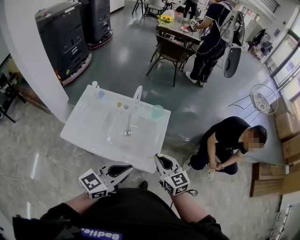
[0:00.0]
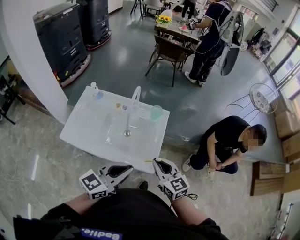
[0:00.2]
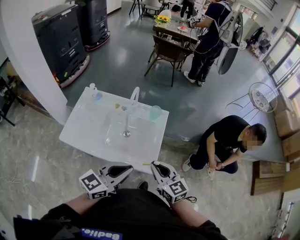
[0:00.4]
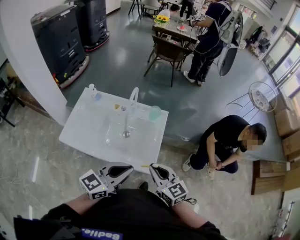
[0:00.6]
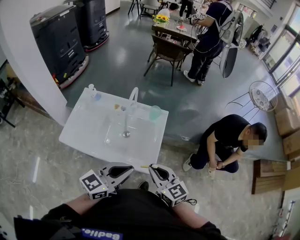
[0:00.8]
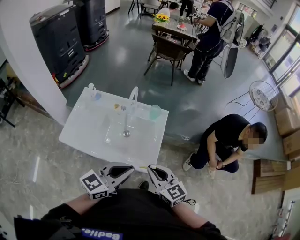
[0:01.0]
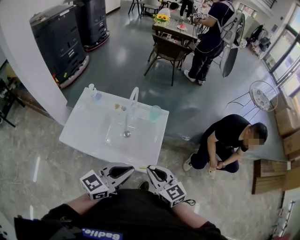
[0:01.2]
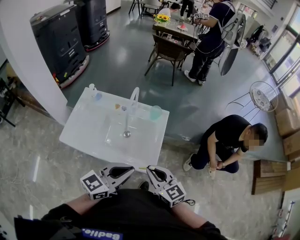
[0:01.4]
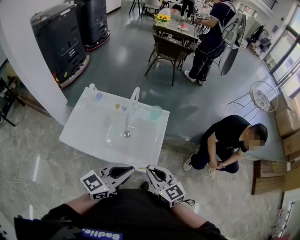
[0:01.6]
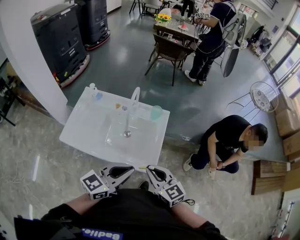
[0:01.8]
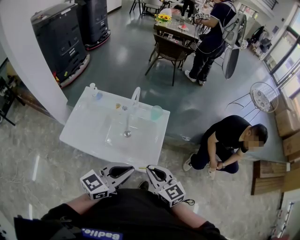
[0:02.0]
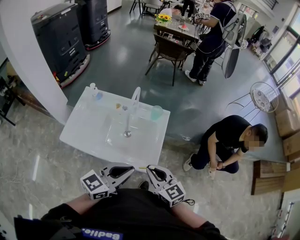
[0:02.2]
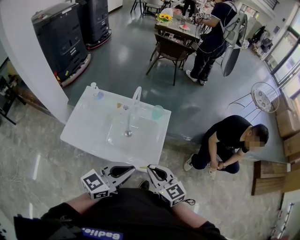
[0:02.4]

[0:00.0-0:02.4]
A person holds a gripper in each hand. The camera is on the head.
0:00.0 to 0:01.2: The right gripper shifts by roughly 5 cm.
0:01.2 to 0:02.4: Neither gripper changes place.

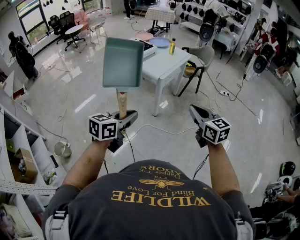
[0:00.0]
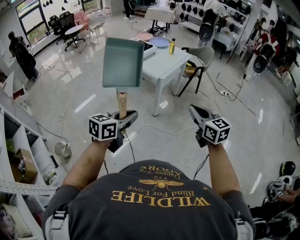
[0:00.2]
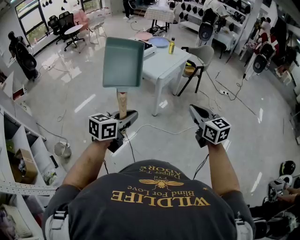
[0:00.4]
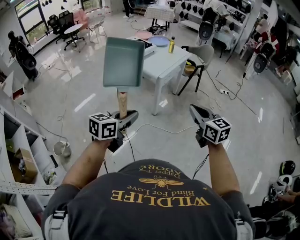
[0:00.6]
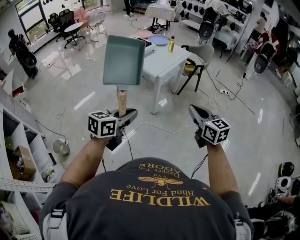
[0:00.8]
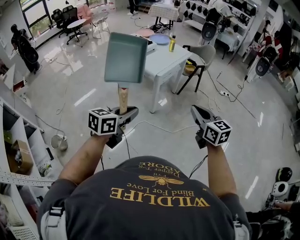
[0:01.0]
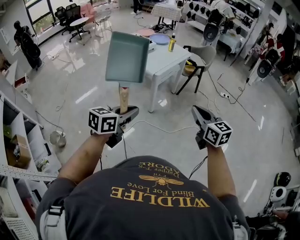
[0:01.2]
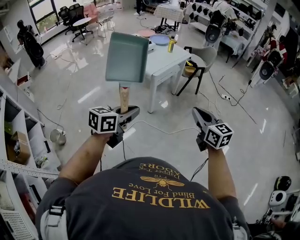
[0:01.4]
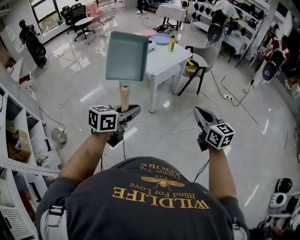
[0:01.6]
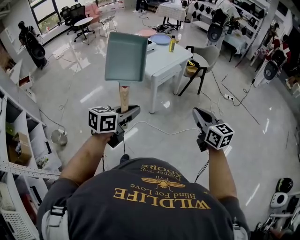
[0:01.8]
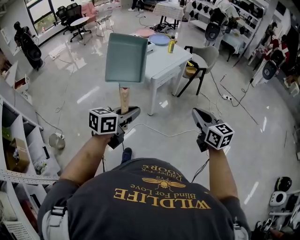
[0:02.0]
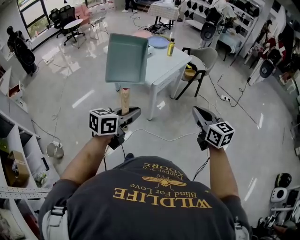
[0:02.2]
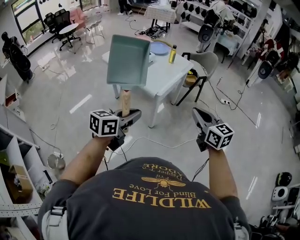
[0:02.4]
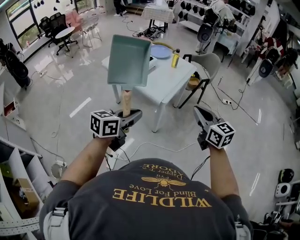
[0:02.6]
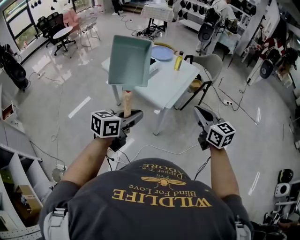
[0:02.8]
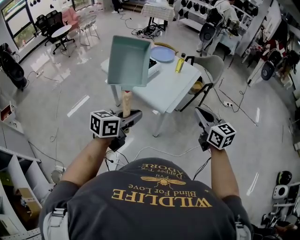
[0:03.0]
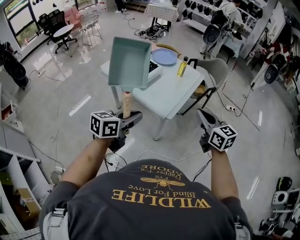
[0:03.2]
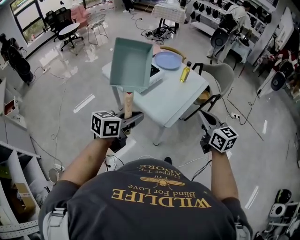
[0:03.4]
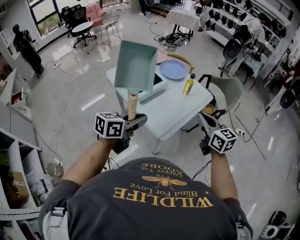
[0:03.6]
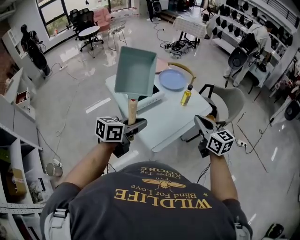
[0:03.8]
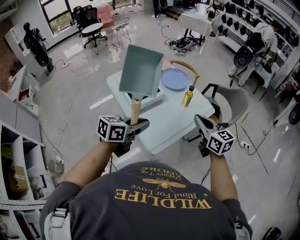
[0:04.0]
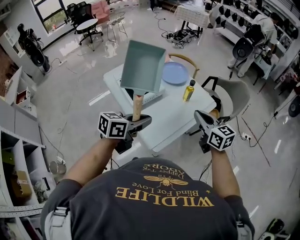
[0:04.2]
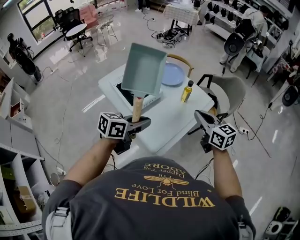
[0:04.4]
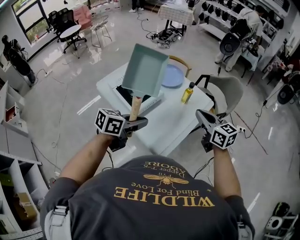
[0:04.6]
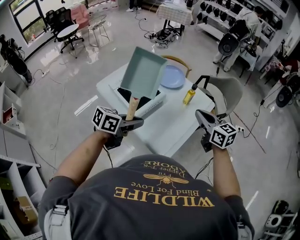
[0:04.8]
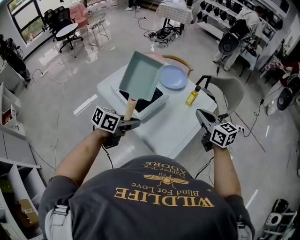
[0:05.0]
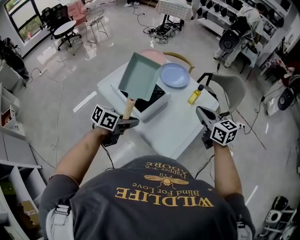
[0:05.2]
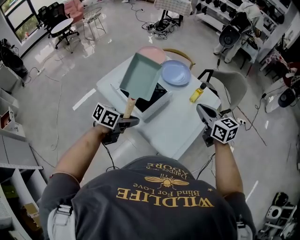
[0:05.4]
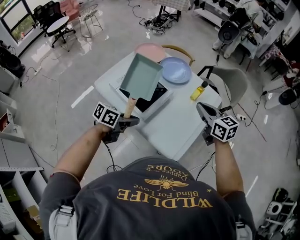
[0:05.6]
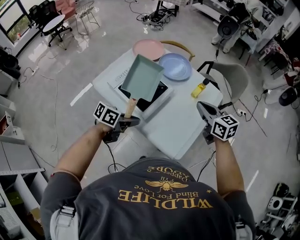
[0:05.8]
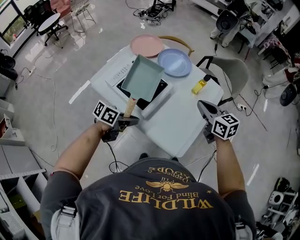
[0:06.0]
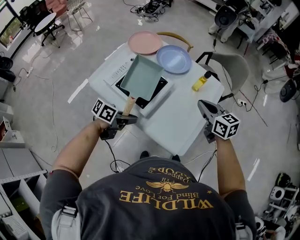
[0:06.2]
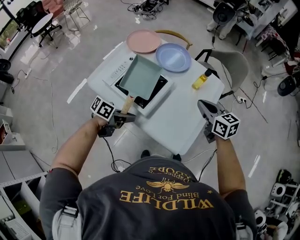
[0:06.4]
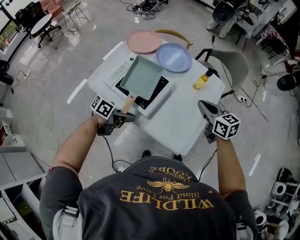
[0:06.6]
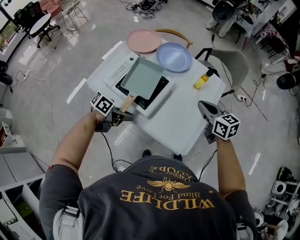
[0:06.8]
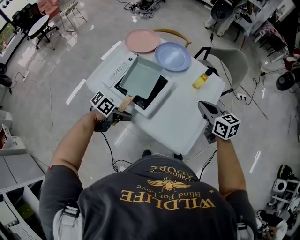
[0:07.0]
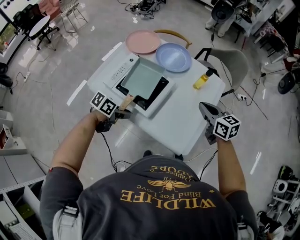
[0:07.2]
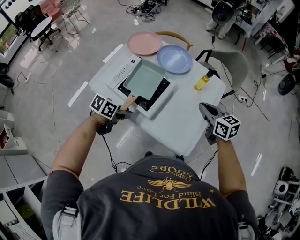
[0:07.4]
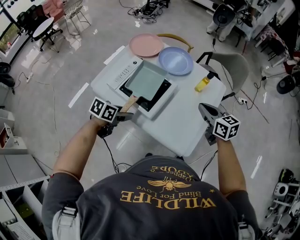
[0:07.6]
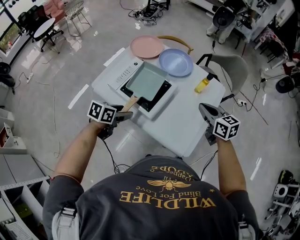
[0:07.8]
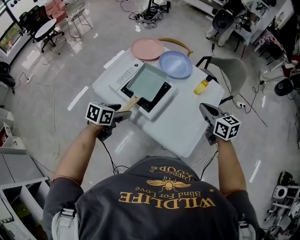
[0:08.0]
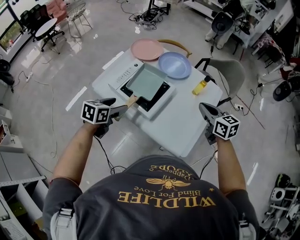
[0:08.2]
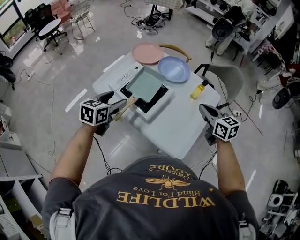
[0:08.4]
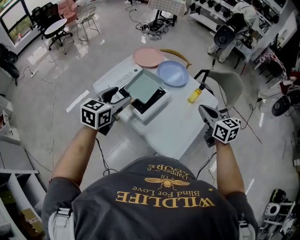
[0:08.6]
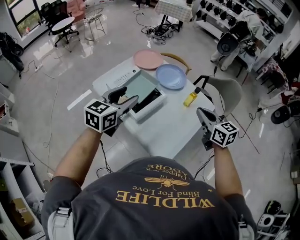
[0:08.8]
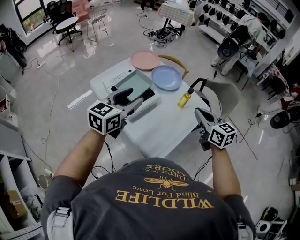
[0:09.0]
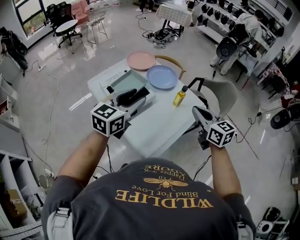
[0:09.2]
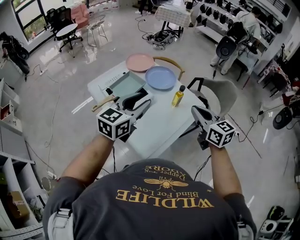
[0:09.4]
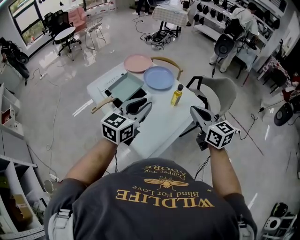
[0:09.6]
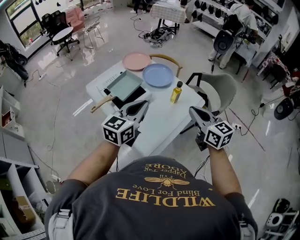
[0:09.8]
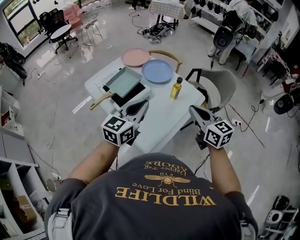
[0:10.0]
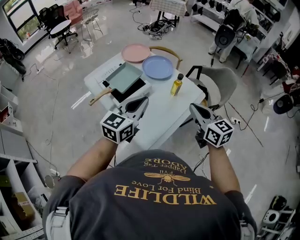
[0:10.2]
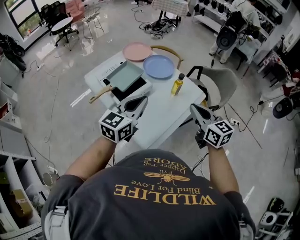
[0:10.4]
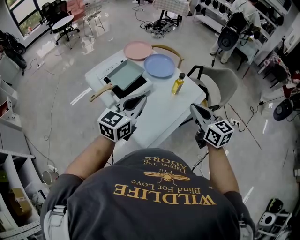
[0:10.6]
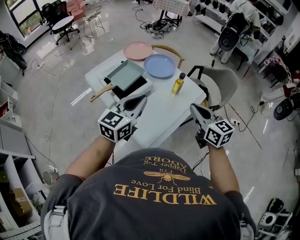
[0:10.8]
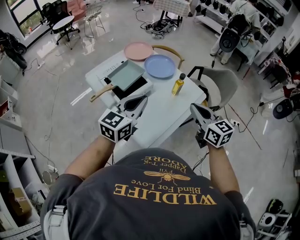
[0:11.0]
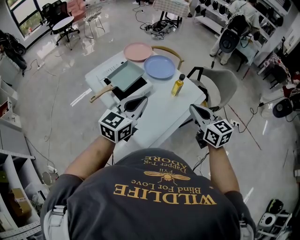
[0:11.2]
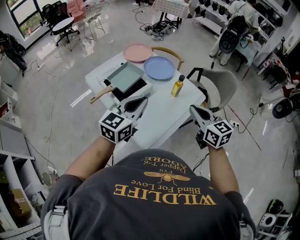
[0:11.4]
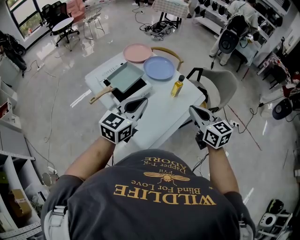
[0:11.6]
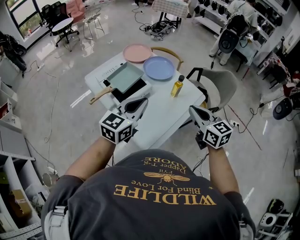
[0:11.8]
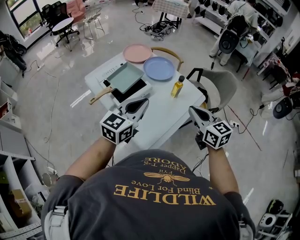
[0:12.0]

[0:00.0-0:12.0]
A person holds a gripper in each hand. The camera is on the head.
0:00.0 to 0:01.6: The grippers both shift to the right by some 15 cm.
0:01.6 to 0:03.0: Both grippers are carried forward and to the left, some 40 cm.
0:03.0 to 0:04.4: Both grippers move forward, some 30 cm.
0:04.4 to 0:06.0: The right gripper moves to the left and forward, approximately 15 cm. Meanwhile the left gripper is displaced to the left and downward by about 25 cm, and changes its angle by about 30 degrees.
0:06.0 to 0:07.6: The left gripper moves about 10 cm, and opens its fingers.
0:07.6 to 0:09.0: The right gripper shifts approximately 10 cm upward; the left gripper shifts about 25 cm upward, and points its fingers roughly 30 degrees further upward.
0:09.0 to 0:10.4: The right gripper is displaced backward by about 5 cm; the left gripper heads to the right and backward, covering some 10 cm, and closes.
0:10.4 to 0:12.0: Neither gripper changes place.

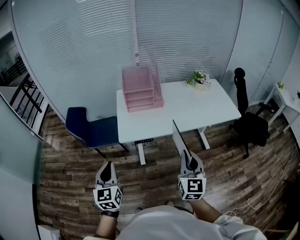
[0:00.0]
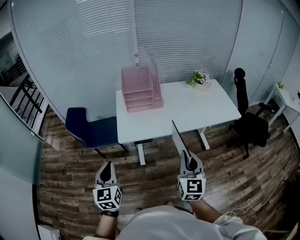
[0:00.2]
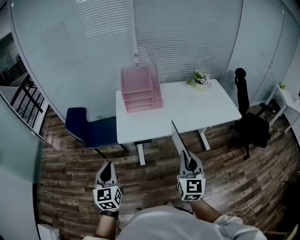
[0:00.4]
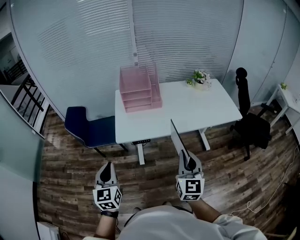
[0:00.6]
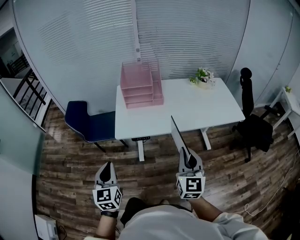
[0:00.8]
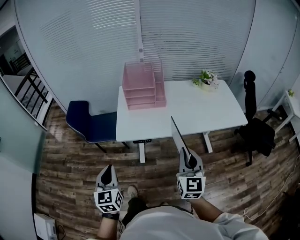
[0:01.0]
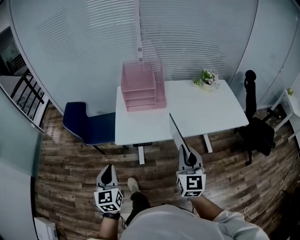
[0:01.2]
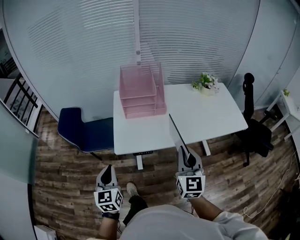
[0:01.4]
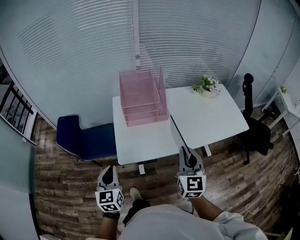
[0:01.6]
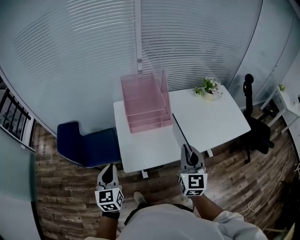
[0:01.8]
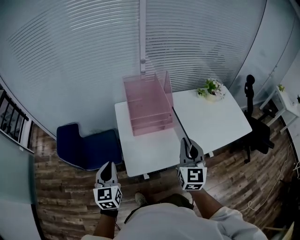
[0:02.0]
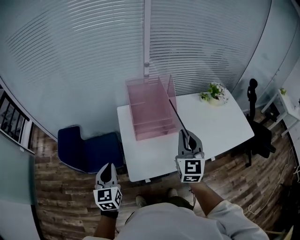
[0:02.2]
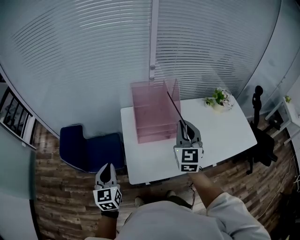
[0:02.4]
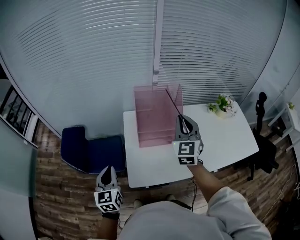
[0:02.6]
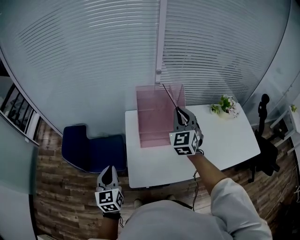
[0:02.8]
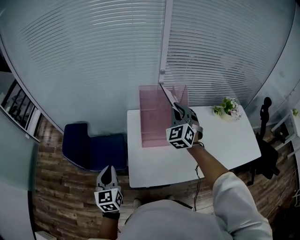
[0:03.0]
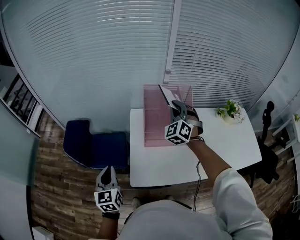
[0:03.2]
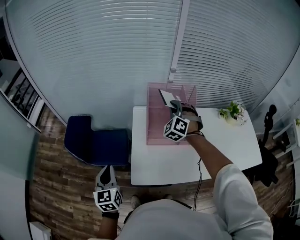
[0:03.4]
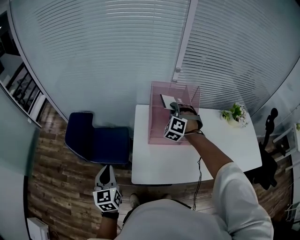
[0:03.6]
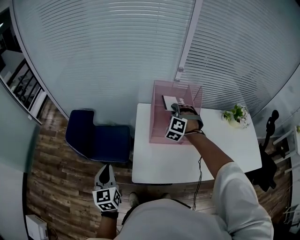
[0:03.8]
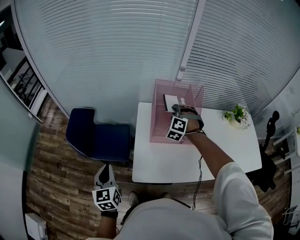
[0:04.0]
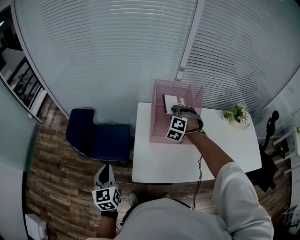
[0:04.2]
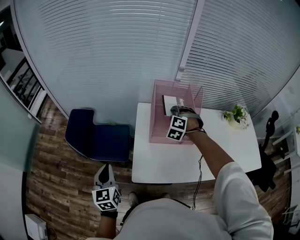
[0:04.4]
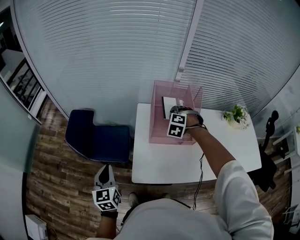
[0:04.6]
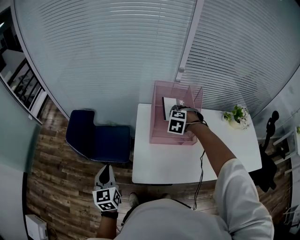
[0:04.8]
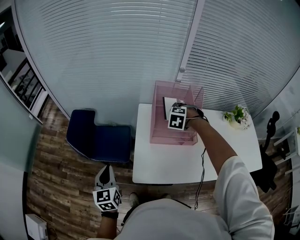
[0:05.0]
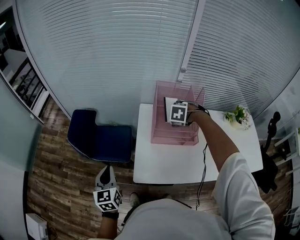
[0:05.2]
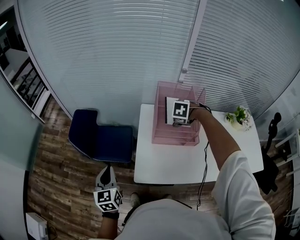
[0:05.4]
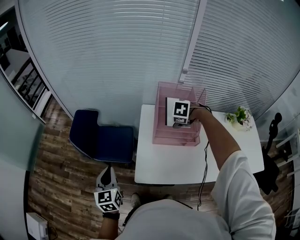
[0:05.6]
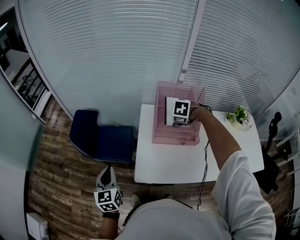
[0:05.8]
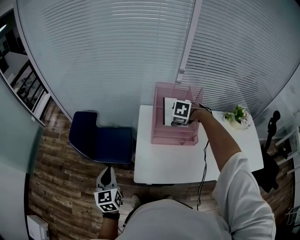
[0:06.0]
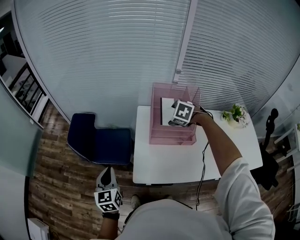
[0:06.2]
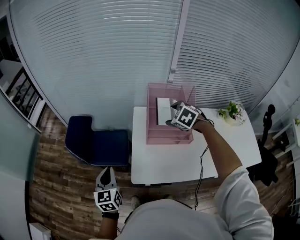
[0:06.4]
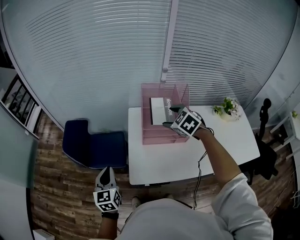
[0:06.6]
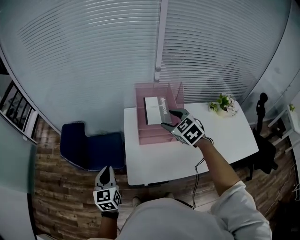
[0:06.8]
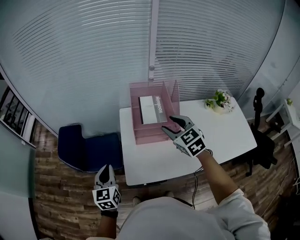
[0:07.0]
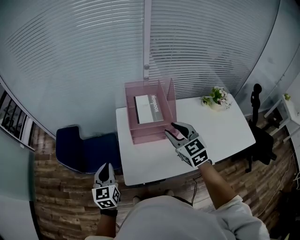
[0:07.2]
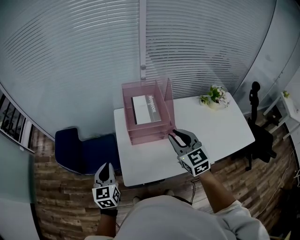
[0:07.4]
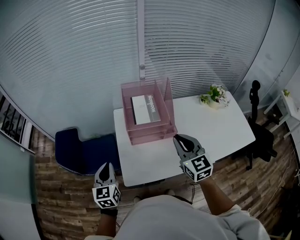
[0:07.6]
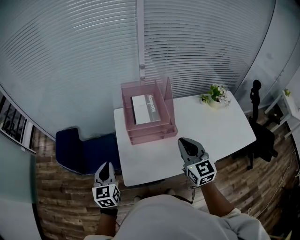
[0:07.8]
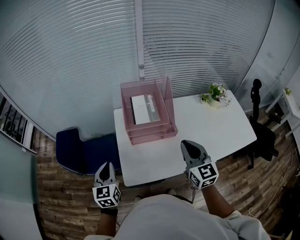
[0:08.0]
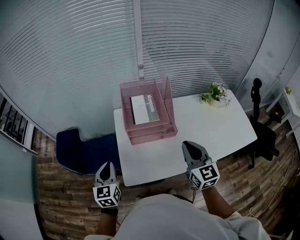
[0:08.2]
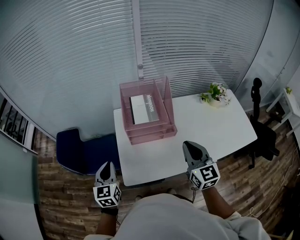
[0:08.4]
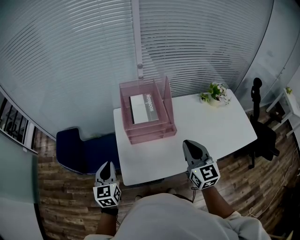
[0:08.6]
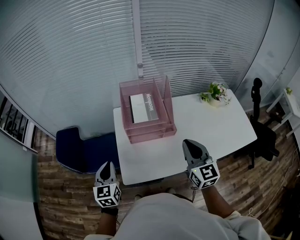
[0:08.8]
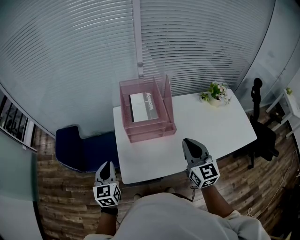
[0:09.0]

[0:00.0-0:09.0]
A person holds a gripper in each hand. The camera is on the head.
0:00.0 to 0:01.6: The two grippers go about 20 cm forward.
0:01.6 to 0:03.0: The right gripper moves forward, about 35 cm, and rotates around the line of its fingers by some 40 degrees, counterclockwise from behind. The left gripper moves forward and to the left, about 20 cm.
0:03.0 to 0:04.4: The left gripper travels to the left by roughly 5 cm. Meanwhile the right gripper travels downward and to the left by some 15 cm, and angles its fingers downward, by roughly 30 degrees.
0:04.4 to 0:06.0: The right gripper points its fingers approximately 30 degrees further downward, and opens its fingers.
0:06.0 to 0:07.6: The left gripper changes place by roughly 10 cm. Meanwhile the right gripper shifts by some 25 cm, points its fingers some 60 degrees further upward, and closes up.
0:07.6 to 0:09.0: The right gripper ends up about 5 cm from where it was.
